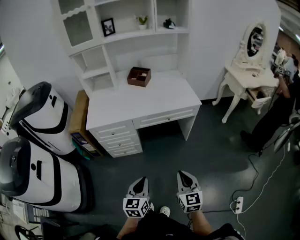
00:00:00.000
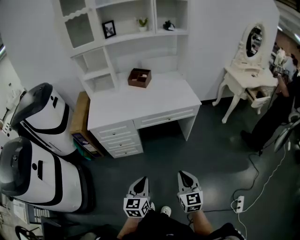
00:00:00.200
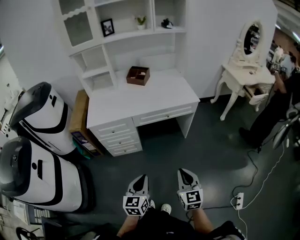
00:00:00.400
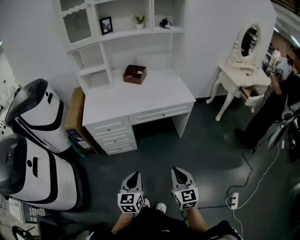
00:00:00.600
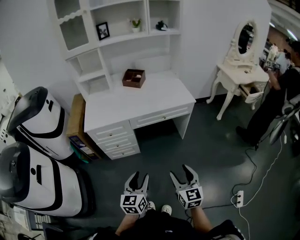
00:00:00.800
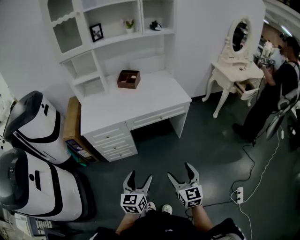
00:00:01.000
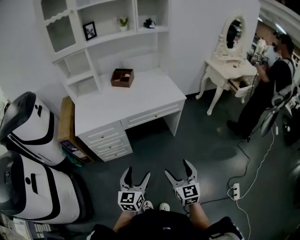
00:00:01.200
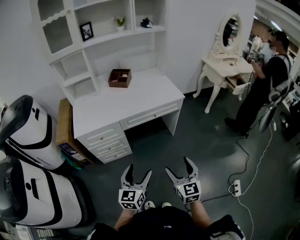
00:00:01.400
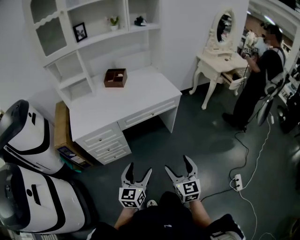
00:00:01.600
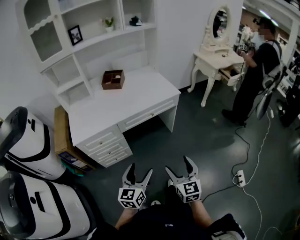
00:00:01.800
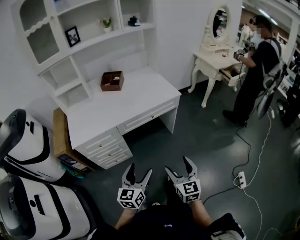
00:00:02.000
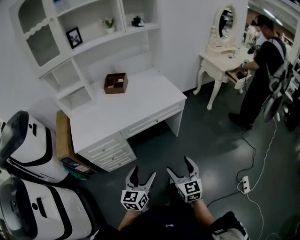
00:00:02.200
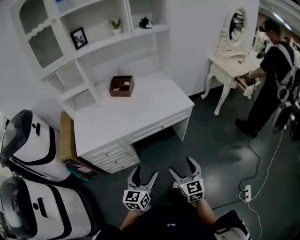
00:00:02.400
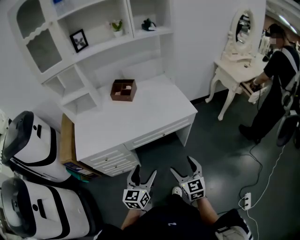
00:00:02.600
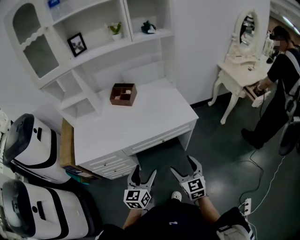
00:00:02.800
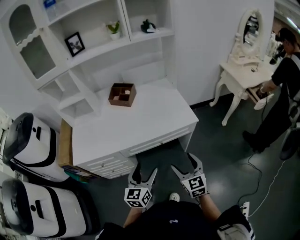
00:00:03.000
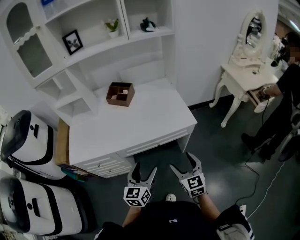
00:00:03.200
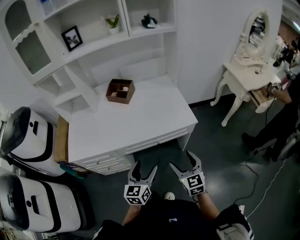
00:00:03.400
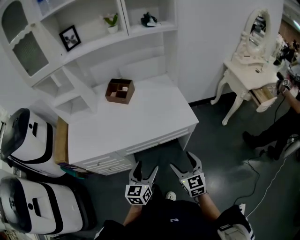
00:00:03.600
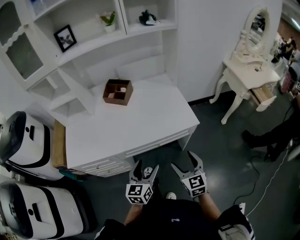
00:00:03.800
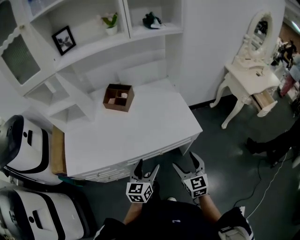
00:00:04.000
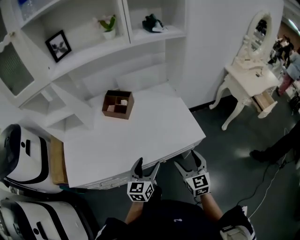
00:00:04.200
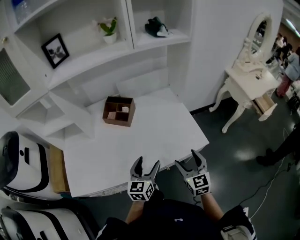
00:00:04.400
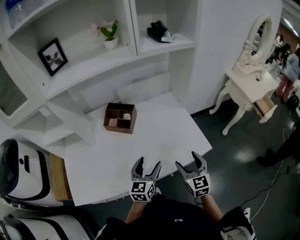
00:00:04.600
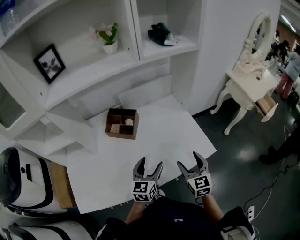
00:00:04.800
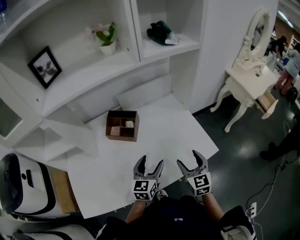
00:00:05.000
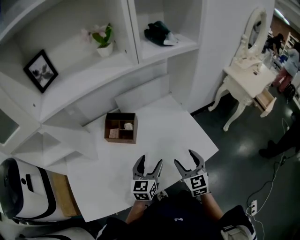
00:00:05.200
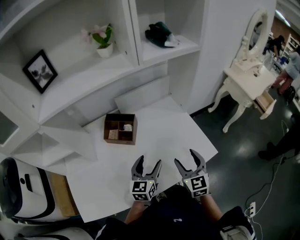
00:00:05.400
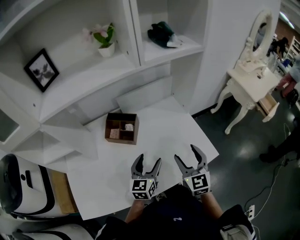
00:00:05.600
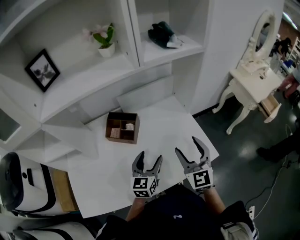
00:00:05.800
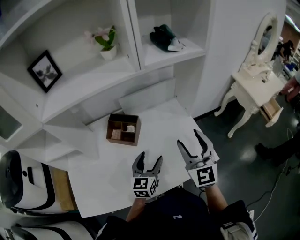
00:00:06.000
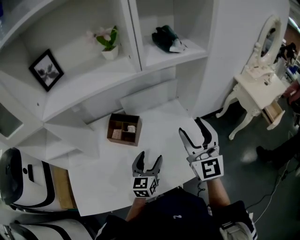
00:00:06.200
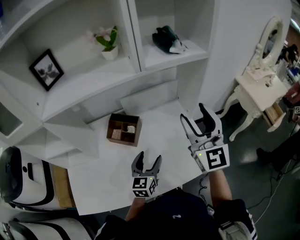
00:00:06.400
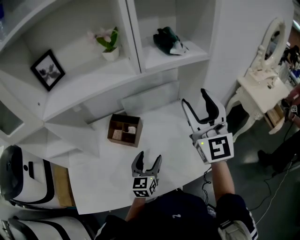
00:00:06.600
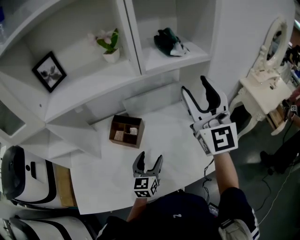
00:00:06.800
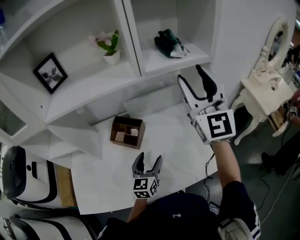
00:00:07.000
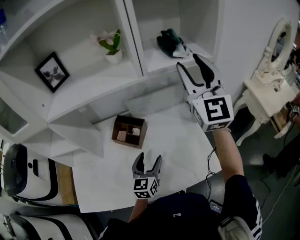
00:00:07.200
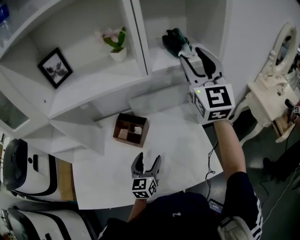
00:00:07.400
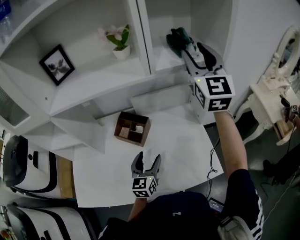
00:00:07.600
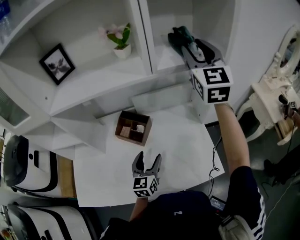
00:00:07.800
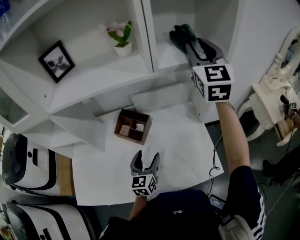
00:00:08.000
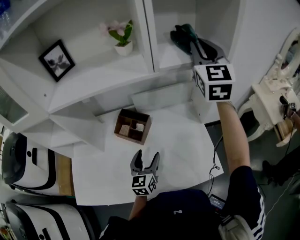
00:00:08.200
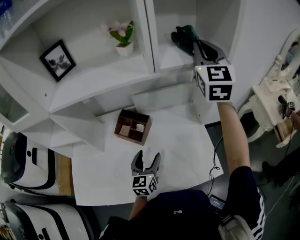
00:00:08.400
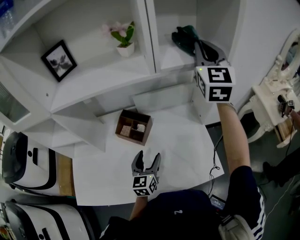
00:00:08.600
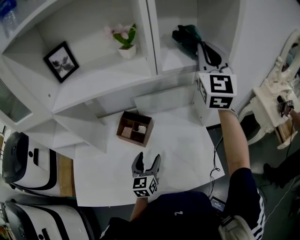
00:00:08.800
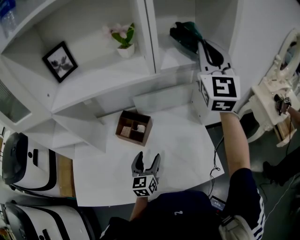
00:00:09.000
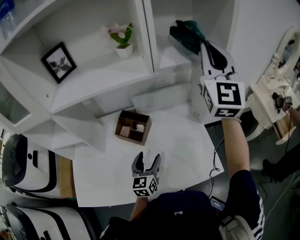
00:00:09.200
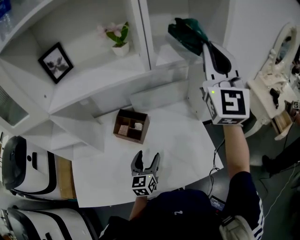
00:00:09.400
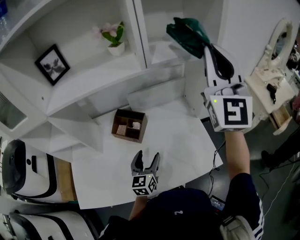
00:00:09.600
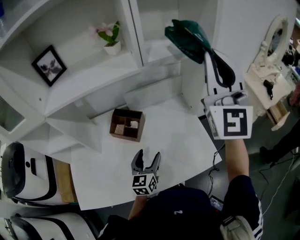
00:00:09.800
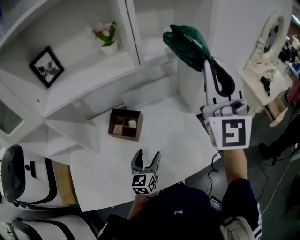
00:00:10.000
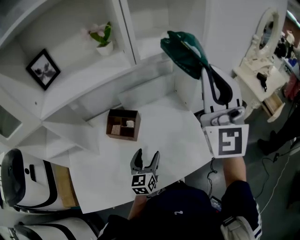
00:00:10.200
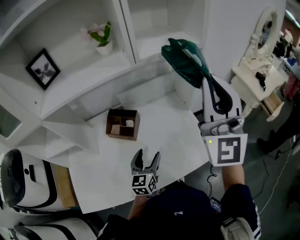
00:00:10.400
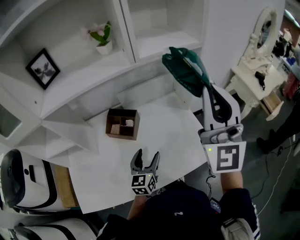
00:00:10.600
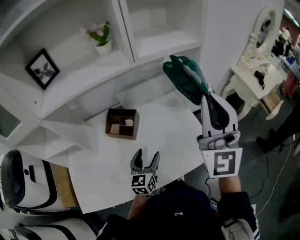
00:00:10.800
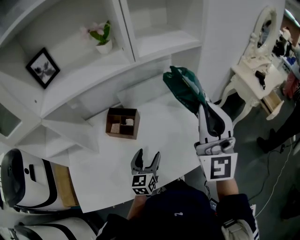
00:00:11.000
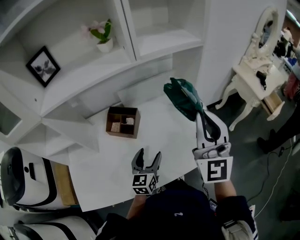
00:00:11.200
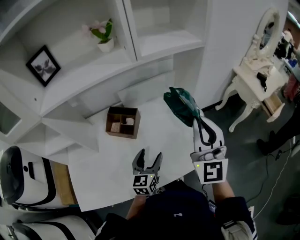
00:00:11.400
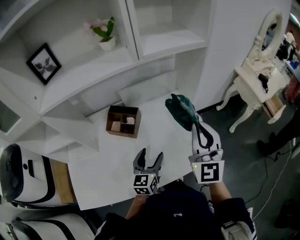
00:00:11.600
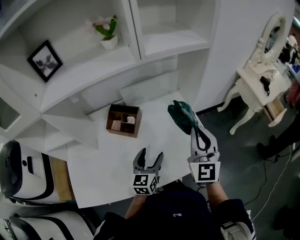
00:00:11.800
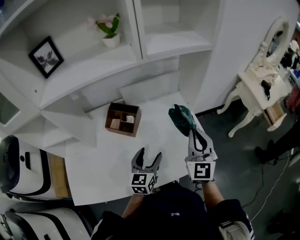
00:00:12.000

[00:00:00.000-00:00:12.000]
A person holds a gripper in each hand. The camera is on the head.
00:00:00.000 to 00:00:01.600: The right gripper opens up. Meanwhile the left gripper opens.
00:00:01.600 to 00:00:03.000: Both grippers travel together forward, about 30 cm.
00:00:03.000 to 00:00:04.400: Both grippers travel together forward, roughly 25 cm.
00:00:04.400 to 00:00:06.000: The left gripper heads forward, covering some 15 cm; the right gripper heads forward and upward, covering approximately 25 cm, and changes its angle by some 20 degrees.
00:00:06.000 to 00:00:07.600: The right gripper goes about 30 cm upward and forward.
00:00:07.600 to 00:00:09.000: The right gripper closes.
00:00:09.000 to 00:00:10.400: The right gripper travels backward by roughly 20 cm.
00:00:10.400 to 00:00:12.000: The right gripper travels downward by roughly 25 cm, and rotates about 30 degrees.

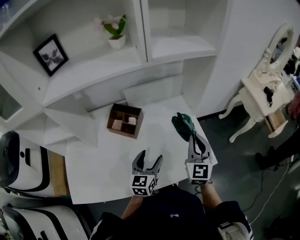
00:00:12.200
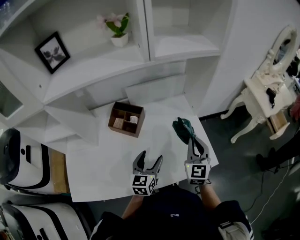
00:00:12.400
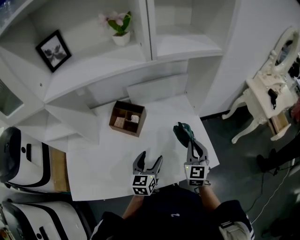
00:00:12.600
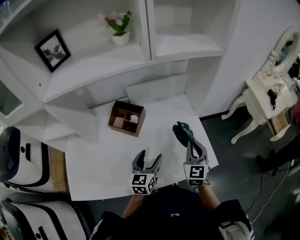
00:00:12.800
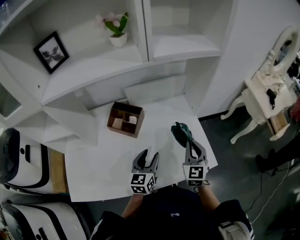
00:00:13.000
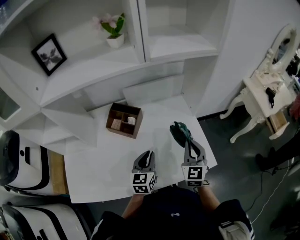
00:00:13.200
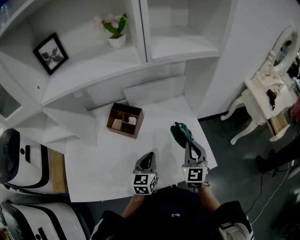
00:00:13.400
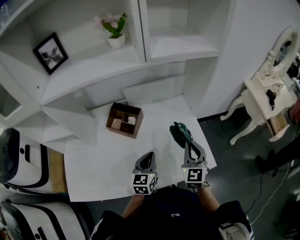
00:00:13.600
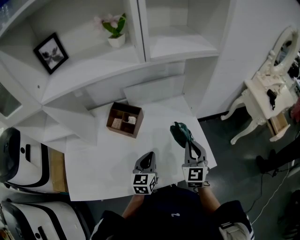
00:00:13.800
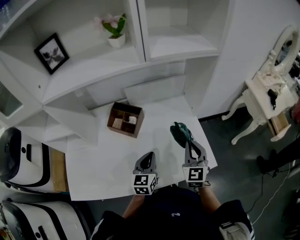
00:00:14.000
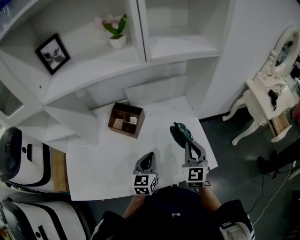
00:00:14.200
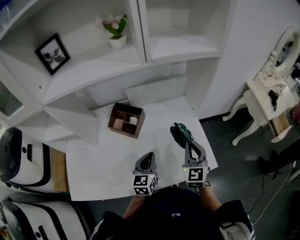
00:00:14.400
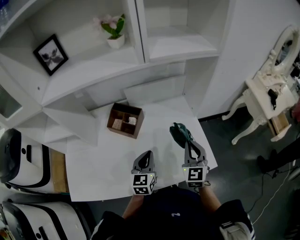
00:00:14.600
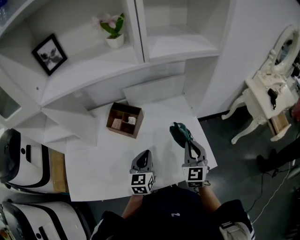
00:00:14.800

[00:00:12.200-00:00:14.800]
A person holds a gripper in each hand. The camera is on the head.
00:00:12.200 to 00:00:13.400: The left gripper closes up. The right gripper moves downward, about 5 cm.
00:00:13.400 to 00:00:14.800: The grippers make only small movements.

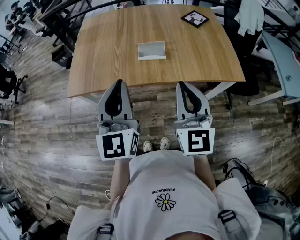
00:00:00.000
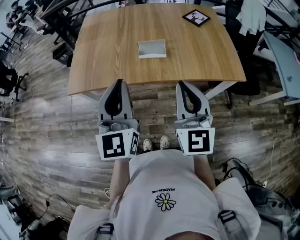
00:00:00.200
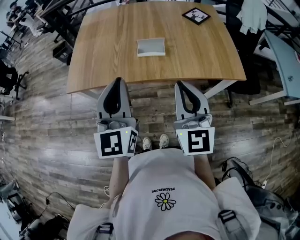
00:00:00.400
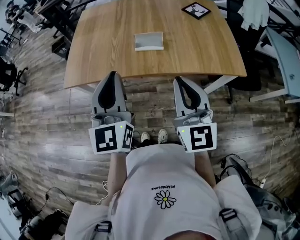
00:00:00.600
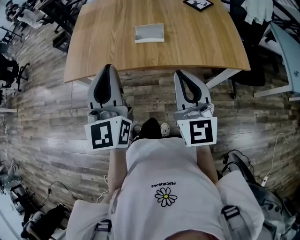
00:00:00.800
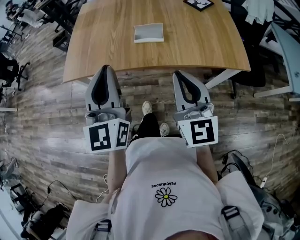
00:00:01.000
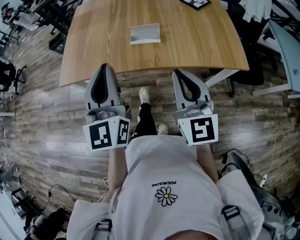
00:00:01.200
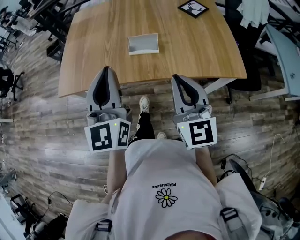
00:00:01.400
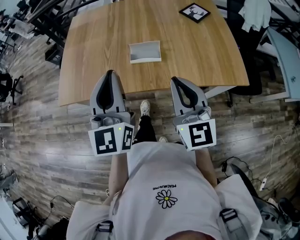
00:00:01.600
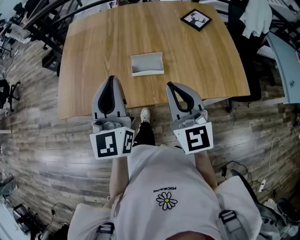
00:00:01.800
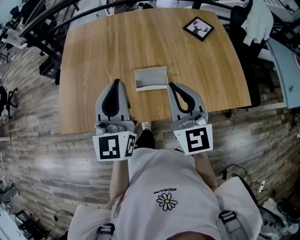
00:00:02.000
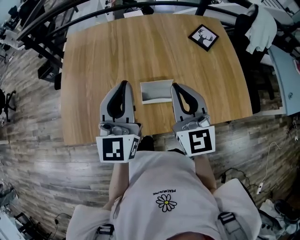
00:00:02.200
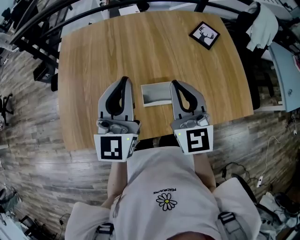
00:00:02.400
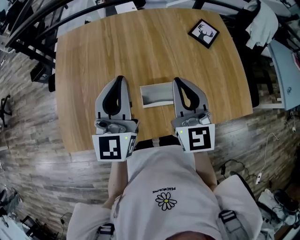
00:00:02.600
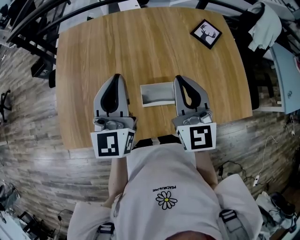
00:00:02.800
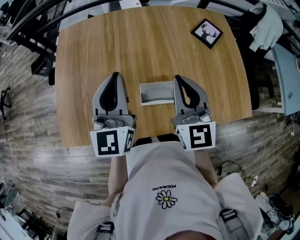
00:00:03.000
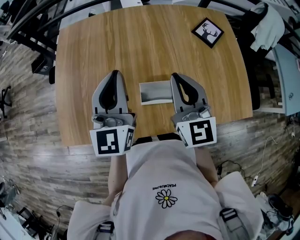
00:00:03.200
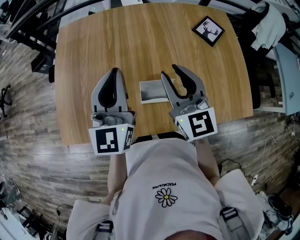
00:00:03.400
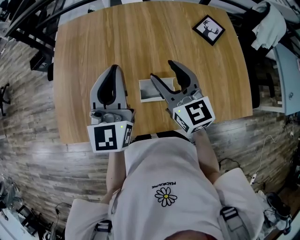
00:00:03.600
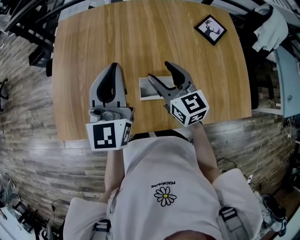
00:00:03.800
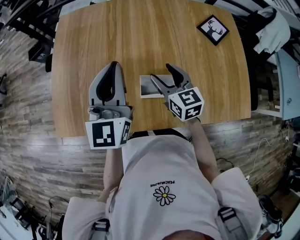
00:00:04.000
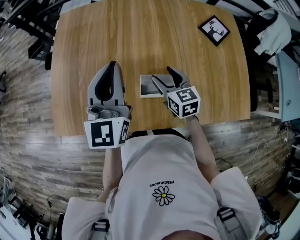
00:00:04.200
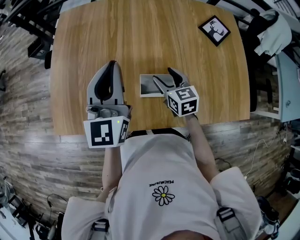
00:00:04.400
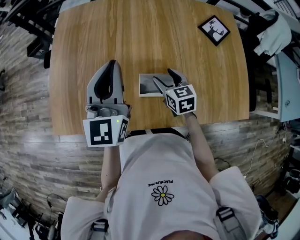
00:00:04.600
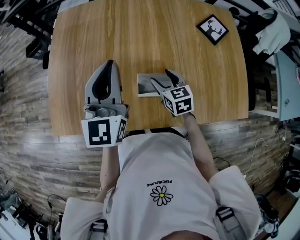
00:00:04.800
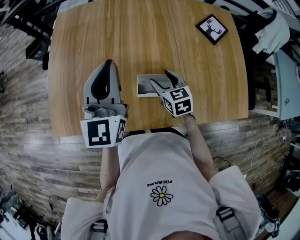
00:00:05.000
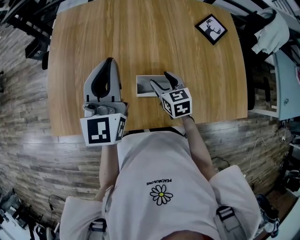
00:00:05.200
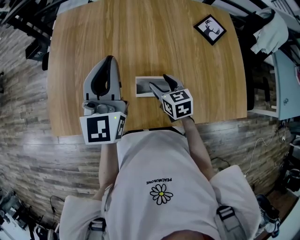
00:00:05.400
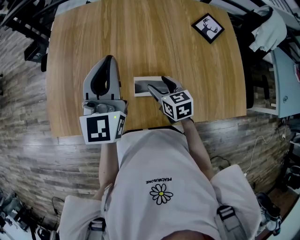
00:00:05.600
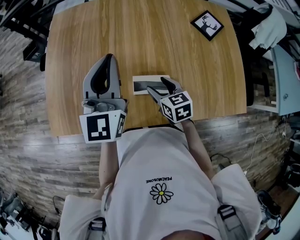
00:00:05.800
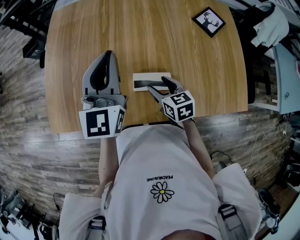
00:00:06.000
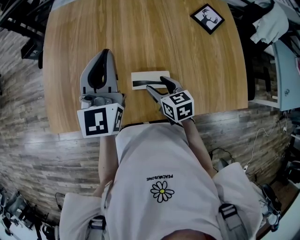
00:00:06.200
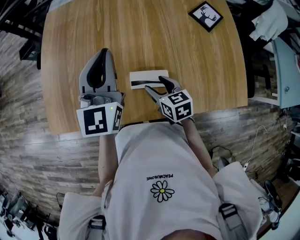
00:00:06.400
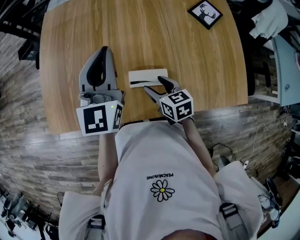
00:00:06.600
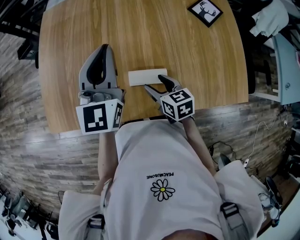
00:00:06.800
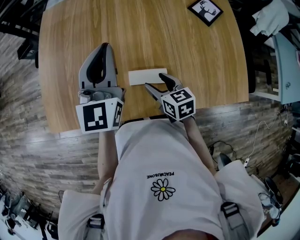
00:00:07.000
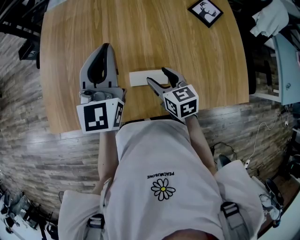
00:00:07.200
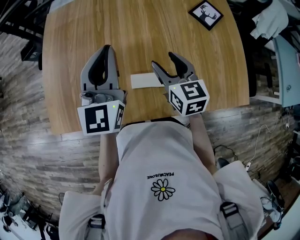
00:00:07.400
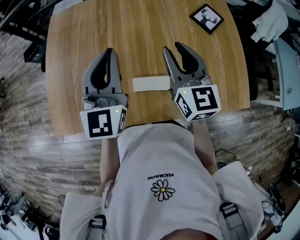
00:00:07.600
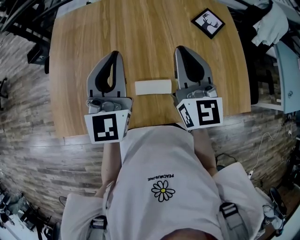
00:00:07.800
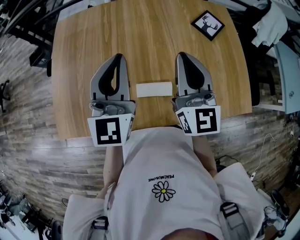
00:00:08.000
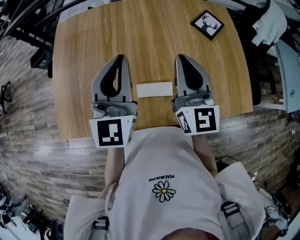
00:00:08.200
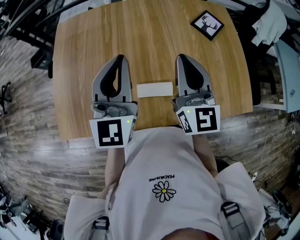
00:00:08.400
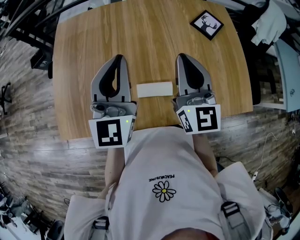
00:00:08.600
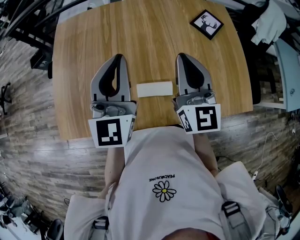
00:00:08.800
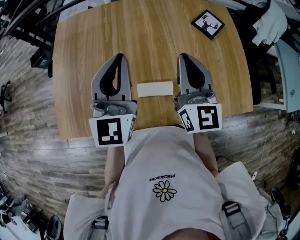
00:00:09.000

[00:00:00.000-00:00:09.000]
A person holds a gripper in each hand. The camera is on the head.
00:00:00.000 to 00:00:01.600: The grippers both shift forward by roughly 10 cm.
00:00:01.600 to 00:00:03.000: The grippers both shift forward by some 25 cm.
00:00:03.000 to 00:00:04.400: The right gripper heads downward, covering some 20 cm, turns by about 40 degrees, and opens.
00:00:04.400 to 00:00:06.000: The right gripper heads backward, covering some 5 cm.
00:00:06.000 to 00:00:07.600: The right gripper is displaced upward by approximately 20 cm, tilts its fingers approximately 30 degrees upward, and closes.
00:00:07.600 to 00:00:09.000: The right gripper ends up some 5 cm from where it was, and closes.
